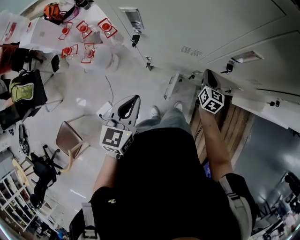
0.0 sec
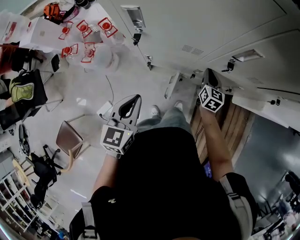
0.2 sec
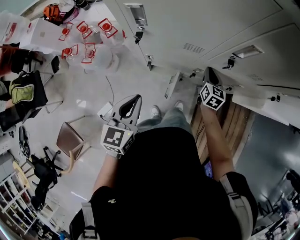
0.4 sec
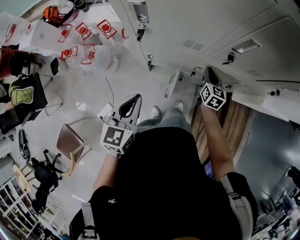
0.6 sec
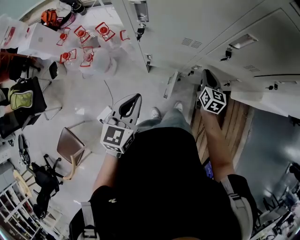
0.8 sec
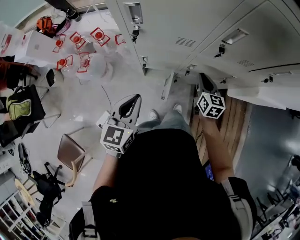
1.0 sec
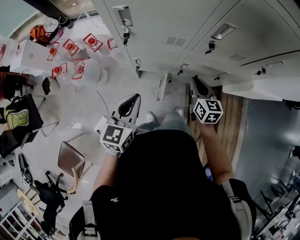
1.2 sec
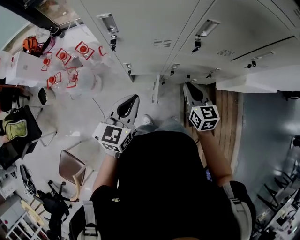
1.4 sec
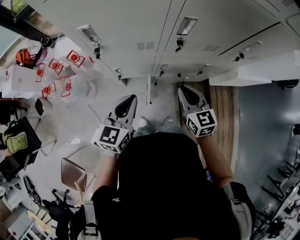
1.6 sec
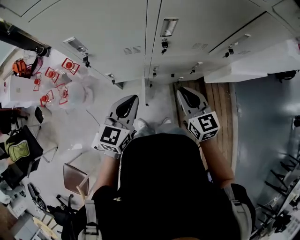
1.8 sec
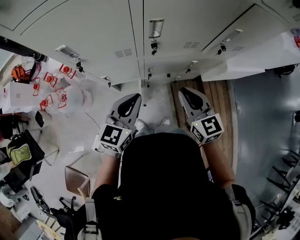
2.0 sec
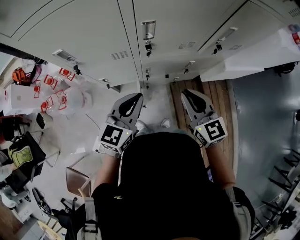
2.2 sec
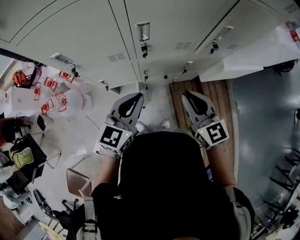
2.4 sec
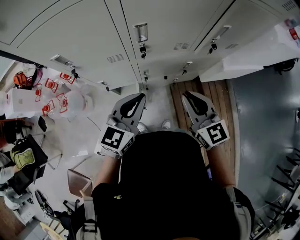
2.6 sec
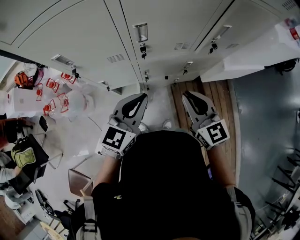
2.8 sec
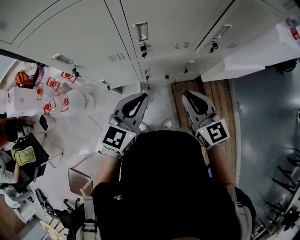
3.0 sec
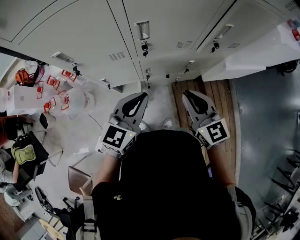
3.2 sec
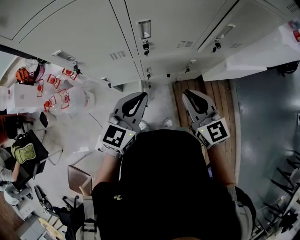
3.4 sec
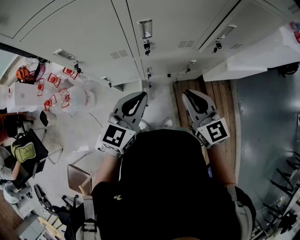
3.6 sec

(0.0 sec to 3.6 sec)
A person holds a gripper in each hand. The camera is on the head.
0.0 sec - 1.8 sec: The right gripper is displaced upward and backward by about 25 cm. The left gripper heads to the right, covering approximately 15 cm, and rotates about 20 degrees.
1.8 sec - 3.6 sec: The left gripper shifts some 10 cm to the right and upward. The right gripper is displaced upward and to the right by about 10 cm.

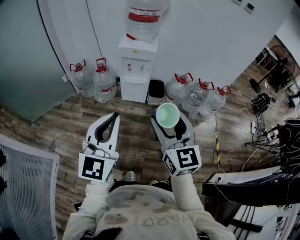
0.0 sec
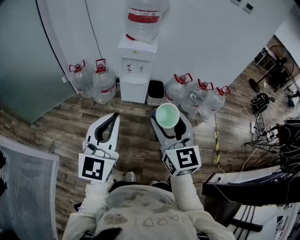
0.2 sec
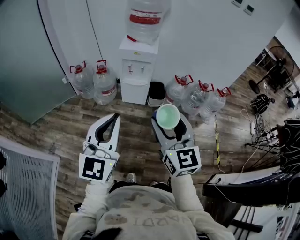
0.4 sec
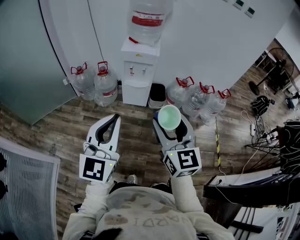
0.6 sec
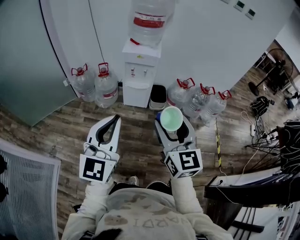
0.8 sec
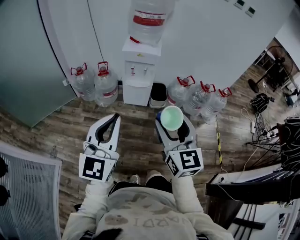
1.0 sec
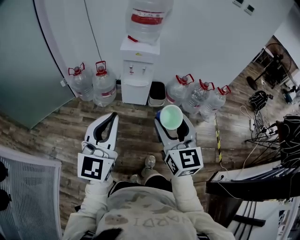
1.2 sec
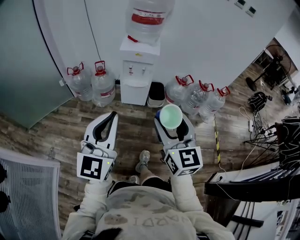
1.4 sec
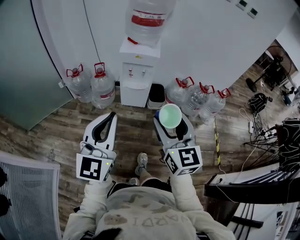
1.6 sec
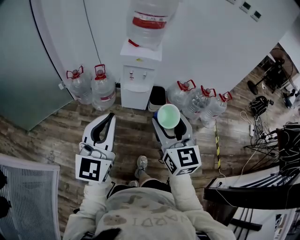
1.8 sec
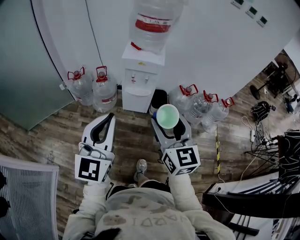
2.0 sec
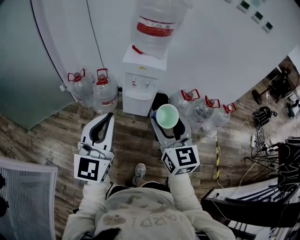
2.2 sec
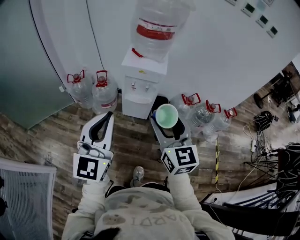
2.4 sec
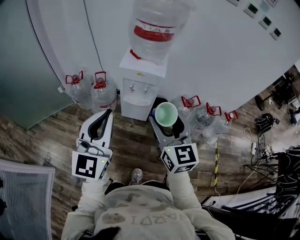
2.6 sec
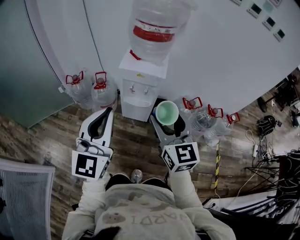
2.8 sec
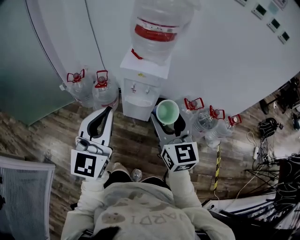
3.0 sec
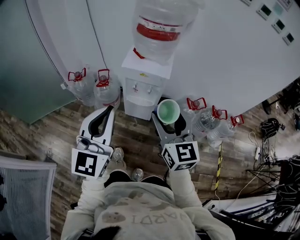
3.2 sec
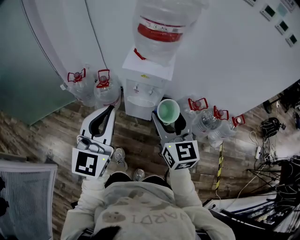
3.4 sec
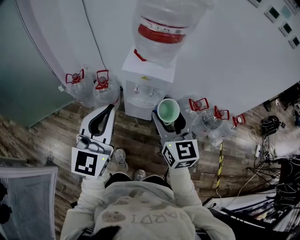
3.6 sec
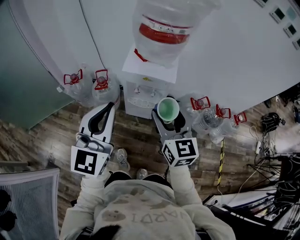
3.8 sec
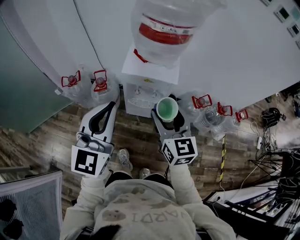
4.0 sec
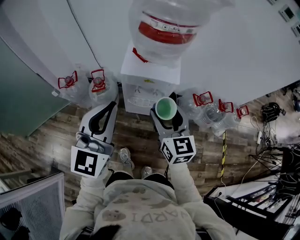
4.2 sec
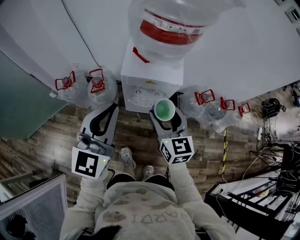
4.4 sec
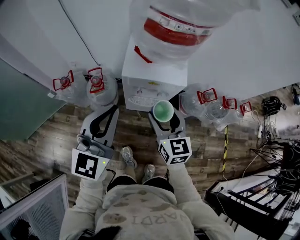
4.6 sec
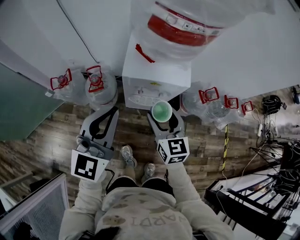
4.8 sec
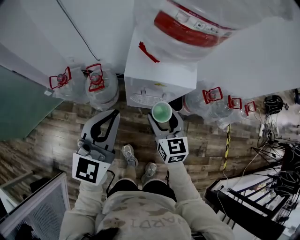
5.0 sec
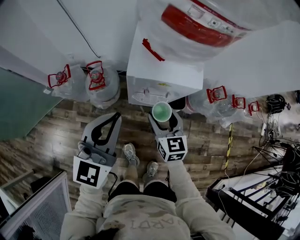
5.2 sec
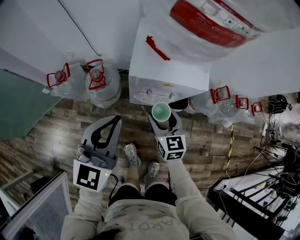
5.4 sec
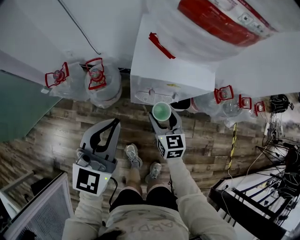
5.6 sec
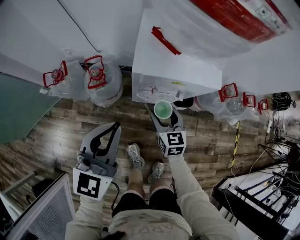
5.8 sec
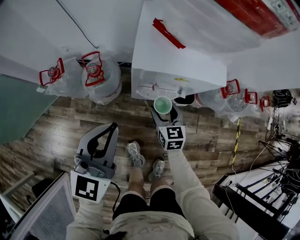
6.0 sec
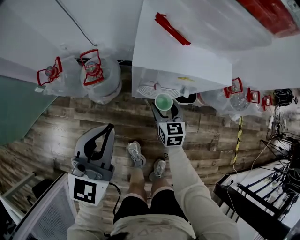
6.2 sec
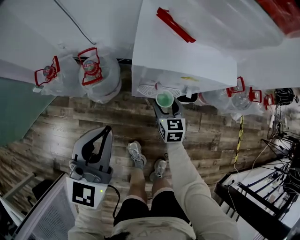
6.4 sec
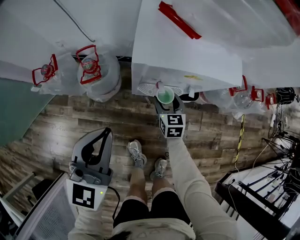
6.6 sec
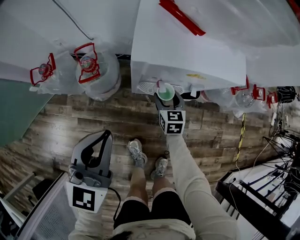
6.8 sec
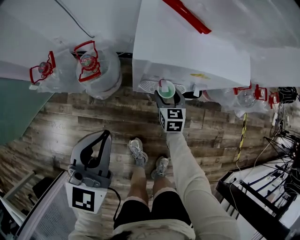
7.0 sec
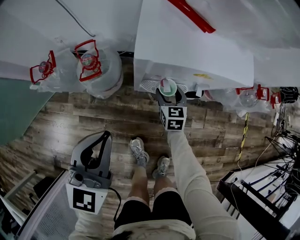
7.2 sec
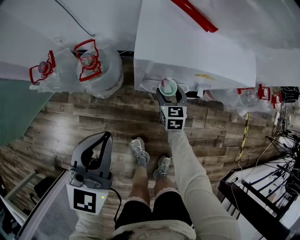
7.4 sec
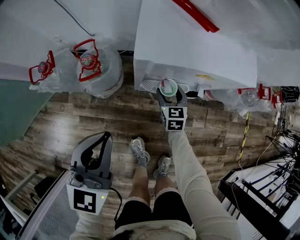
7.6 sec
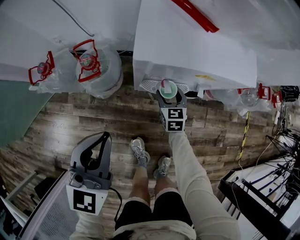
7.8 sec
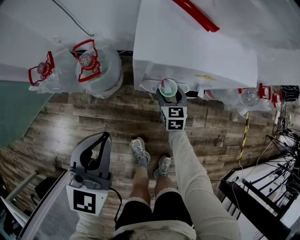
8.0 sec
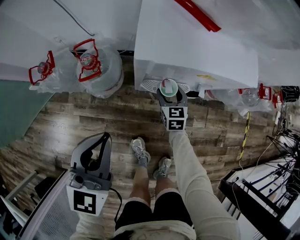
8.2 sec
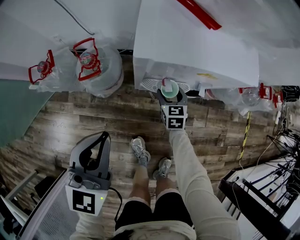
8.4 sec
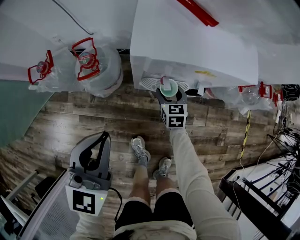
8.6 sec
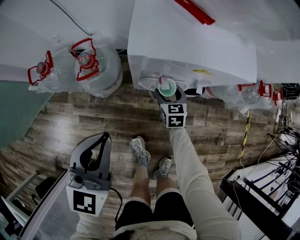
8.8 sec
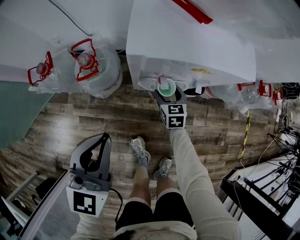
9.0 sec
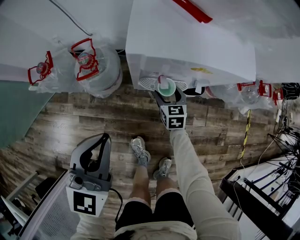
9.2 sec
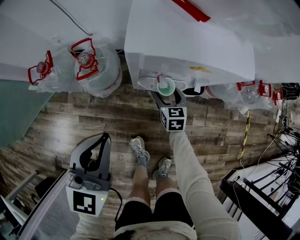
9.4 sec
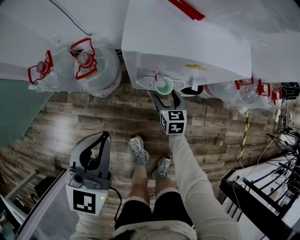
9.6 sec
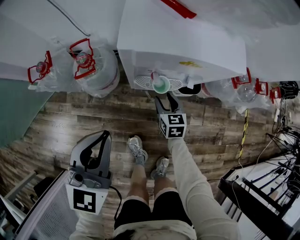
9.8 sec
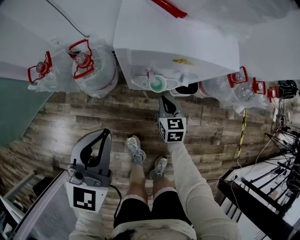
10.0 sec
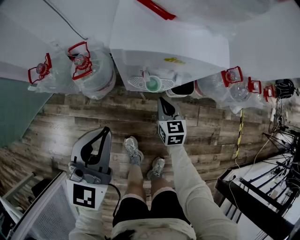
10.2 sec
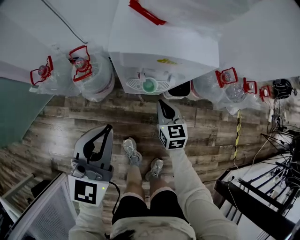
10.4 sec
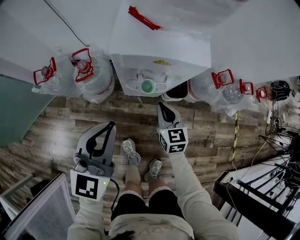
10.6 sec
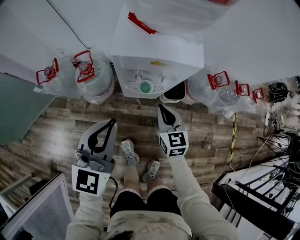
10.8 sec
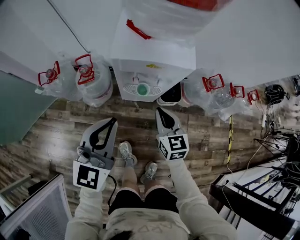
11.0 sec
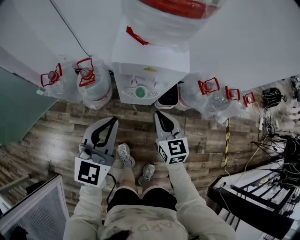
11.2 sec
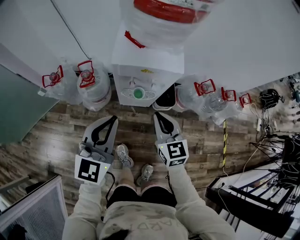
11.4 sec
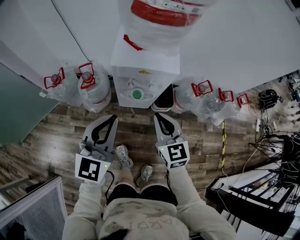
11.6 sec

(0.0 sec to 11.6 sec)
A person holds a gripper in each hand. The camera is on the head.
0.0 sec - 1.4 sec: The left gripper travels to the left and forward by roughly 10 cm. Meanwhile the right gripper ends up roughly 5 cm from where it was.
1.4 sec - 2.8 sec: Both grippers travel together forward, roughly 25 cm.
2.8 sec - 4.4 sec: The right gripper heads forward and downward, covering about 25 cm. Meanwhile the left gripper heads forward, covering some 25 cm.
4.4 sec - 5.8 sec: The left gripper travels downward by about 20 cm. Meanwhile the right gripper goes roughly 30 cm downward.
5.8 sec - 7.2 sec: The right gripper moves downward and forward, some 20 cm, while the left gripper moves downward, approximately 10 cm.
7.2 sec - 8.8 sec: There are only small adjustments of the grippers.
8.8 sec - 10.2 sec: The right gripper is displaced upward and backward by roughly 10 cm, and closes up; the left gripper changes place by about 5 cm.
10.2 sec - 11.6 sec: The left gripper is displaced upward, backward and to the right by about 15 cm, while the right gripper is displaced upward and backward by roughly 35 cm, and swivels some 20 degrees.

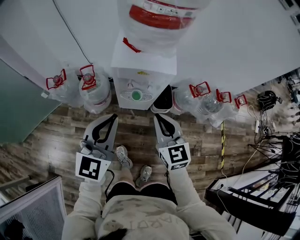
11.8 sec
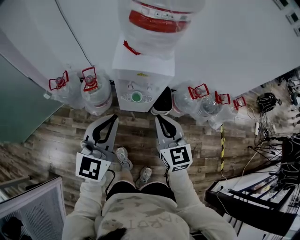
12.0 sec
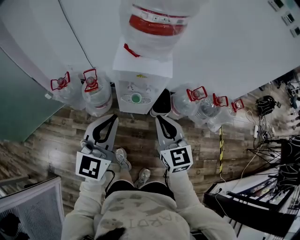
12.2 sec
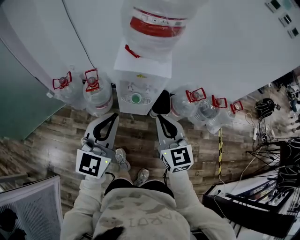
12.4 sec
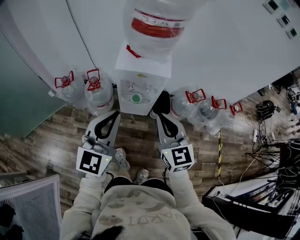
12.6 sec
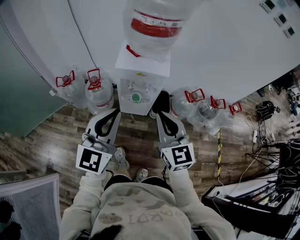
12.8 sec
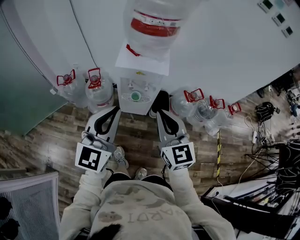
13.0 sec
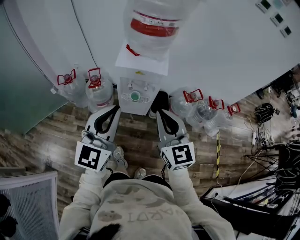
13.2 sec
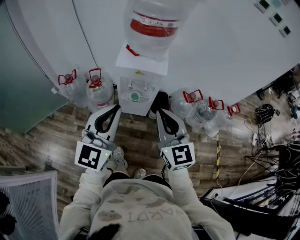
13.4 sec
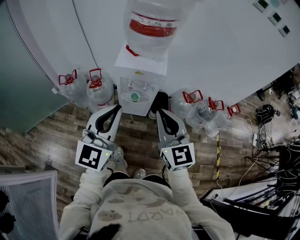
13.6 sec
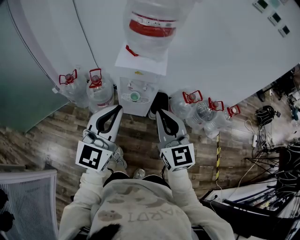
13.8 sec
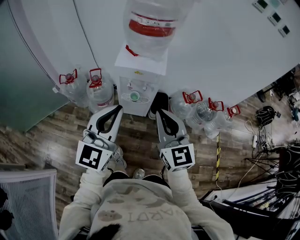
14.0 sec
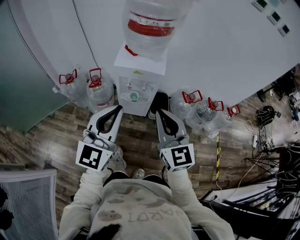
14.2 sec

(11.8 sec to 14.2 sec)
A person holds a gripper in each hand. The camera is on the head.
11.8 sec - 13.0 sec: Both grippers travel together upward and backward, about 15 cm.
13.0 sec - 14.2 sec: The left gripper moves some 5 cm. Meanwhile the right gripper moves approximately 5 cm.

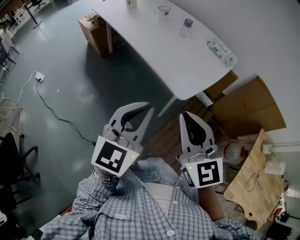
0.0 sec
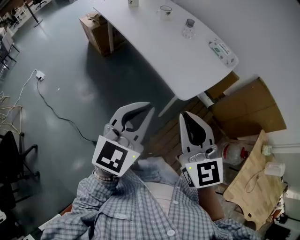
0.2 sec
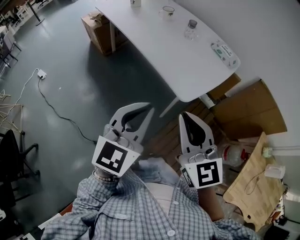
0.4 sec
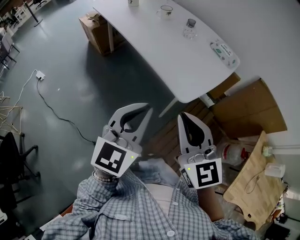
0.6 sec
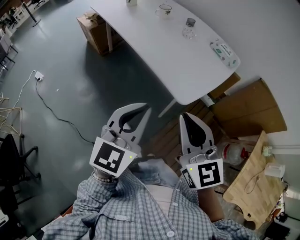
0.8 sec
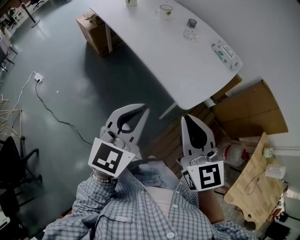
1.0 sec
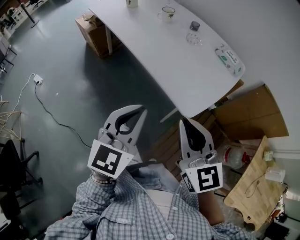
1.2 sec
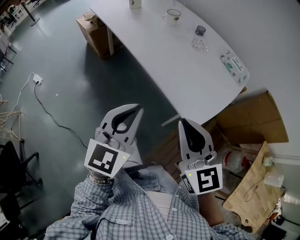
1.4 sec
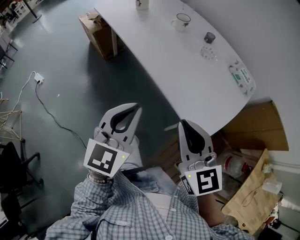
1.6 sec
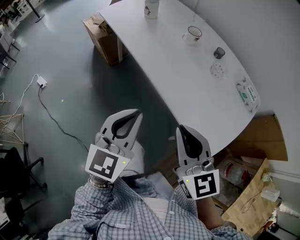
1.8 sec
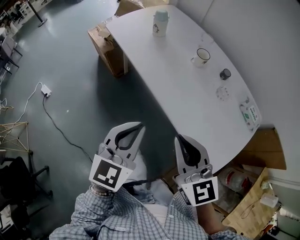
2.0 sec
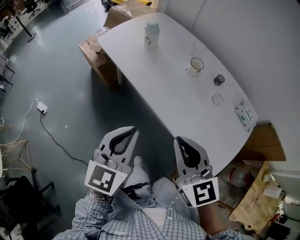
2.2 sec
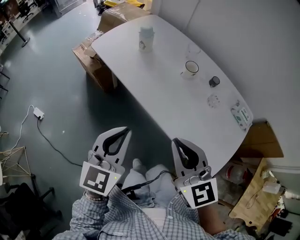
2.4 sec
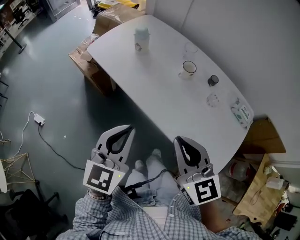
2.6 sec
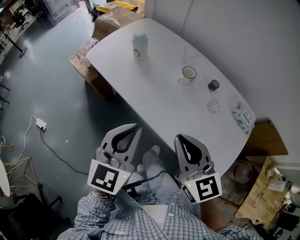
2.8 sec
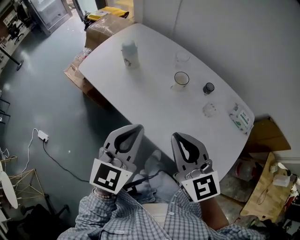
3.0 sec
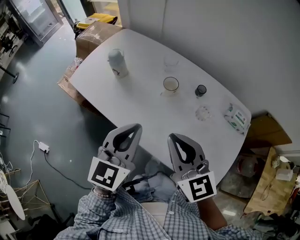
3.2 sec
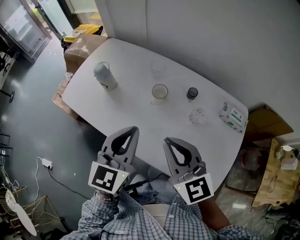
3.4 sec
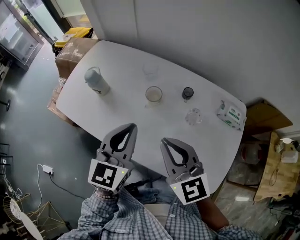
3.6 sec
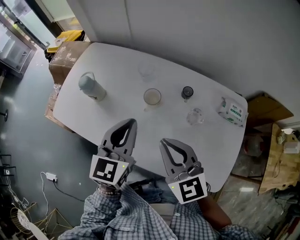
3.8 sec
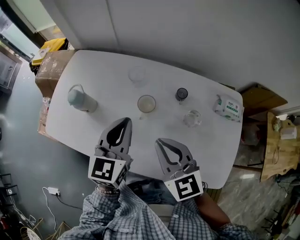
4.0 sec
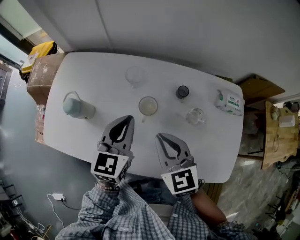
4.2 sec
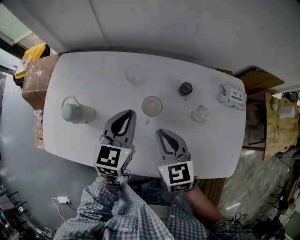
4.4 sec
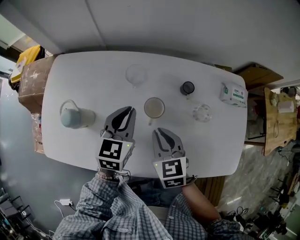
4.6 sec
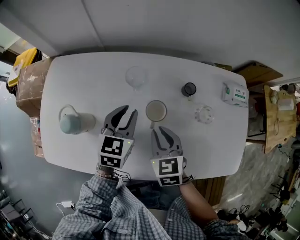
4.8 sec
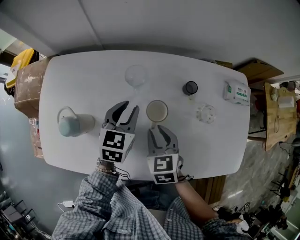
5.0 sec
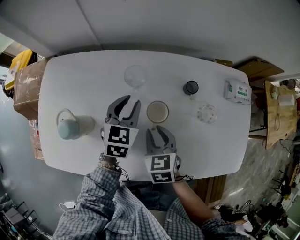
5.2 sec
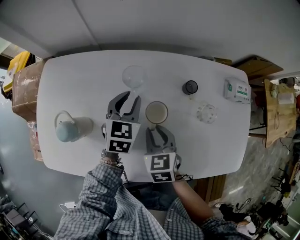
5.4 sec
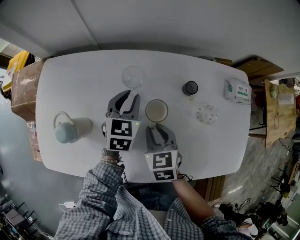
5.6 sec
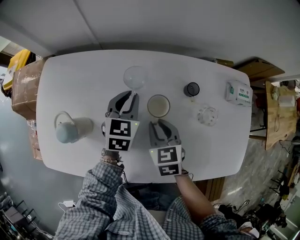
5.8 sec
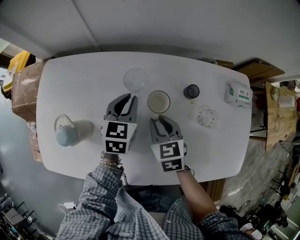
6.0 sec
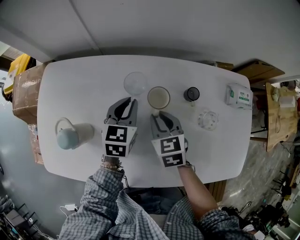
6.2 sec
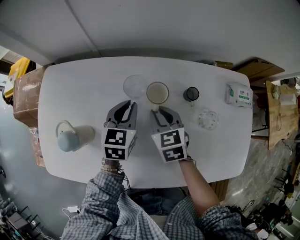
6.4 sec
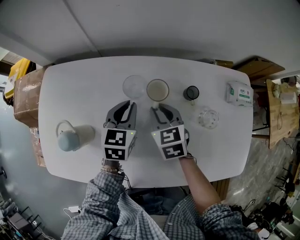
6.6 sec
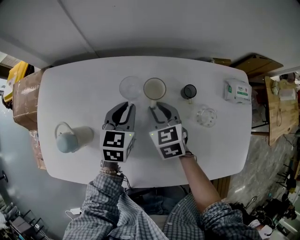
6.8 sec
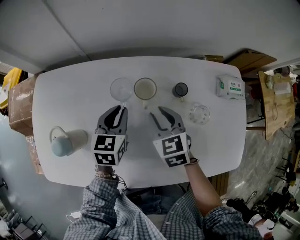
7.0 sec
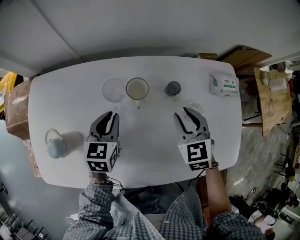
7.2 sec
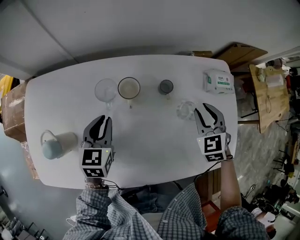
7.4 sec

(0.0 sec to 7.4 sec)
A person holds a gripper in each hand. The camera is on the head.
0.0 sec - 1.4 sec: Both grippers travel together forward and to the left, approximately 15 cm.
1.4 sec - 3.0 sec: Both grippers travel together forward and to the left, approximately 35 cm.
3.0 sec - 4.4 sec: The left gripper moves about 30 cm, and swivels some 30 degrees; the right gripper ends up roughly 25 cm from where it was, and changes its angle by roughly 40 degrees.
4.4 sec - 6.0 sec: The two grippers go some 15 cm downward and forward.
6.0 sec - 7.4 sec: The left gripper travels backward by about 5 cm. Meanwhile the right gripper travels to the right by approximately 25 cm, and rotates some 30 degrees.
